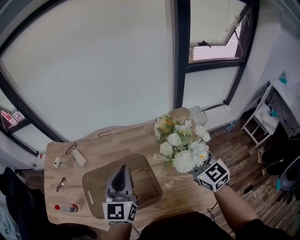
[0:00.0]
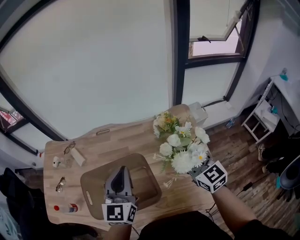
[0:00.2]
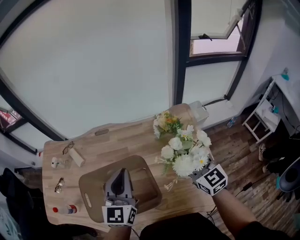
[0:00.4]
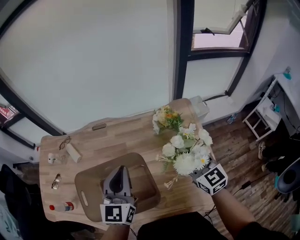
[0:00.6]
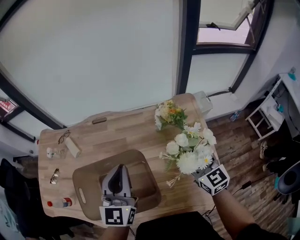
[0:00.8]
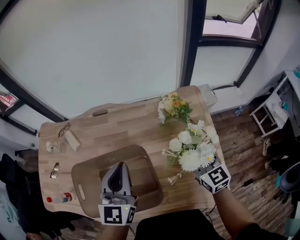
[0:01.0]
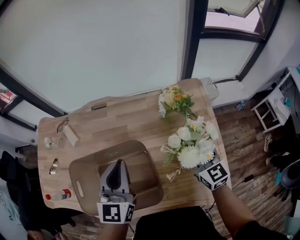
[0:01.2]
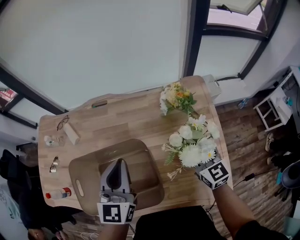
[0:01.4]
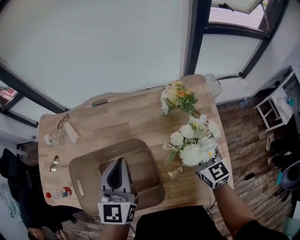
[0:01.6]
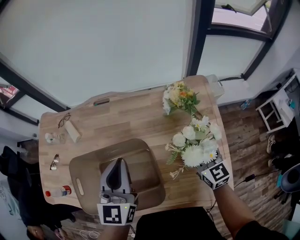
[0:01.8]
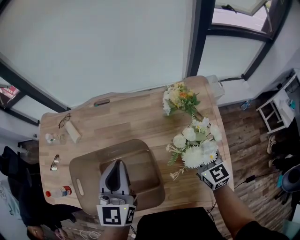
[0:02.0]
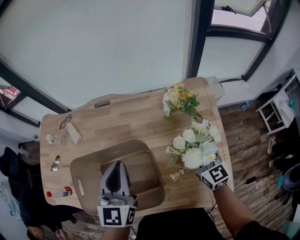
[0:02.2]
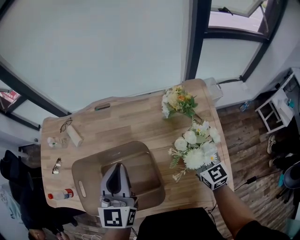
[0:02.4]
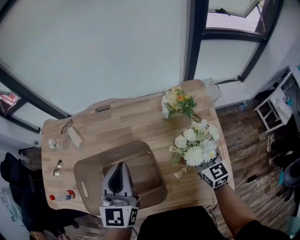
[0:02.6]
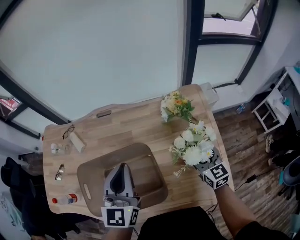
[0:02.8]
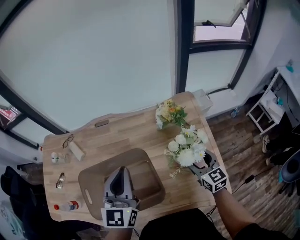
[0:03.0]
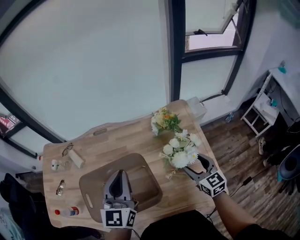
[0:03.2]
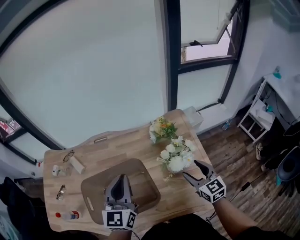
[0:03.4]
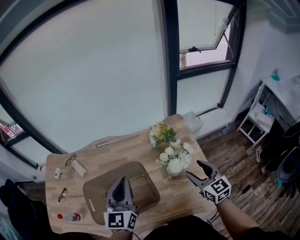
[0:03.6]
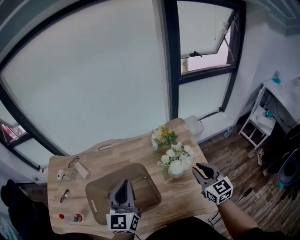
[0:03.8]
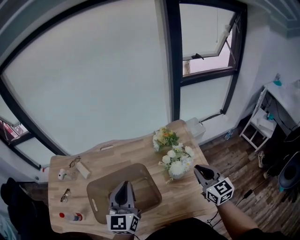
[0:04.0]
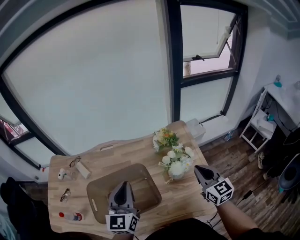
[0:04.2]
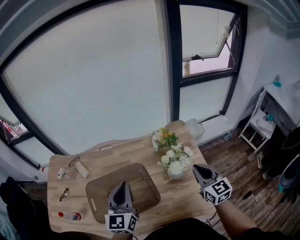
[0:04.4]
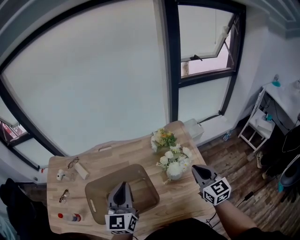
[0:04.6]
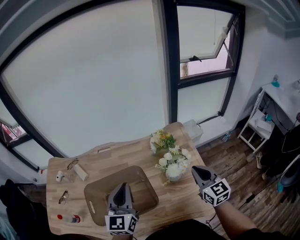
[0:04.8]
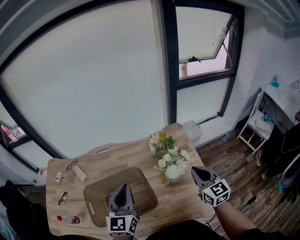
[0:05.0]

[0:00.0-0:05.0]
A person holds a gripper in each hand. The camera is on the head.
0.0 to 1.6 s: The left gripper goes roughly 10 cm downward; the right gripper shifts roughly 15 cm downward.
1.6 to 3.4 s: The left gripper shifts approximately 5 cm upward. The right gripper travels backward and upward by roughly 10 cm.
3.4 to 5.0 s: The right gripper shifts approximately 10 cm upward, and closes its fingers.

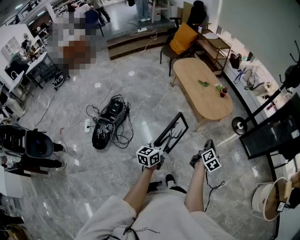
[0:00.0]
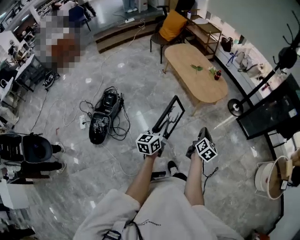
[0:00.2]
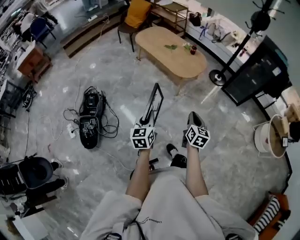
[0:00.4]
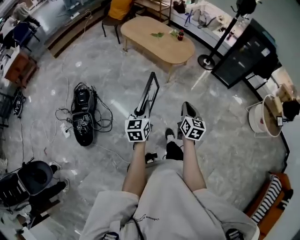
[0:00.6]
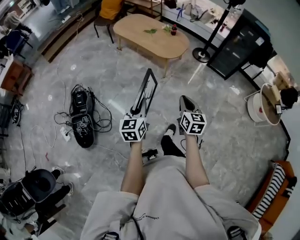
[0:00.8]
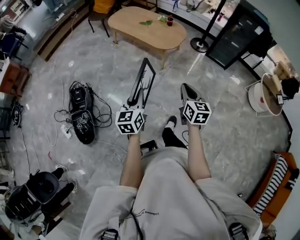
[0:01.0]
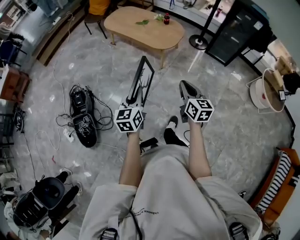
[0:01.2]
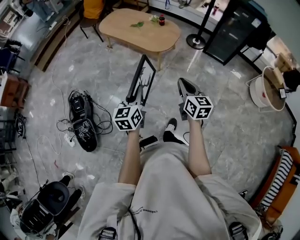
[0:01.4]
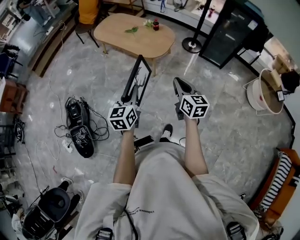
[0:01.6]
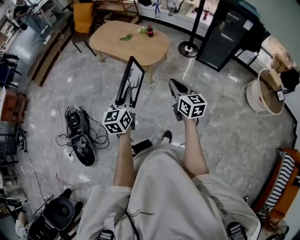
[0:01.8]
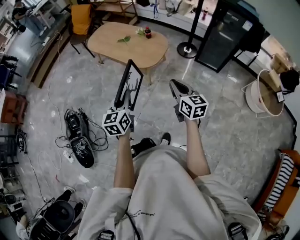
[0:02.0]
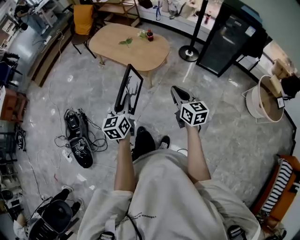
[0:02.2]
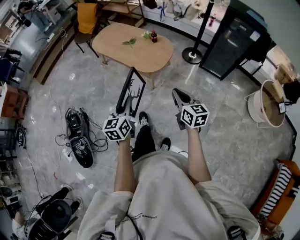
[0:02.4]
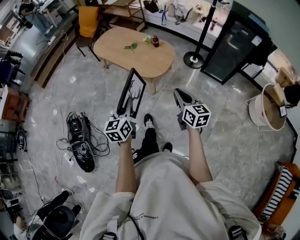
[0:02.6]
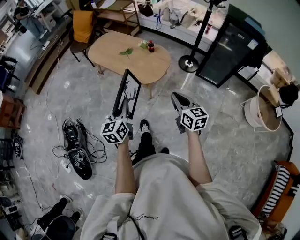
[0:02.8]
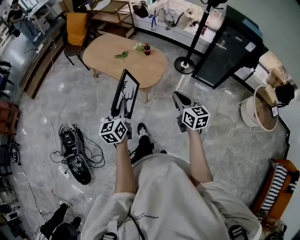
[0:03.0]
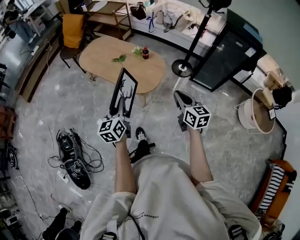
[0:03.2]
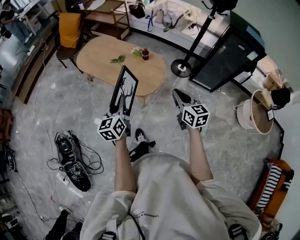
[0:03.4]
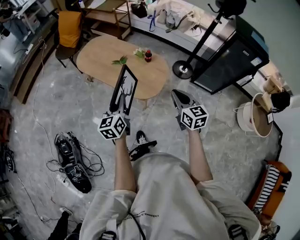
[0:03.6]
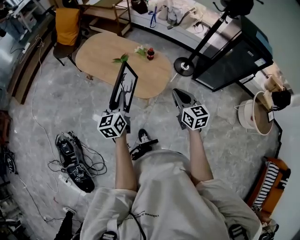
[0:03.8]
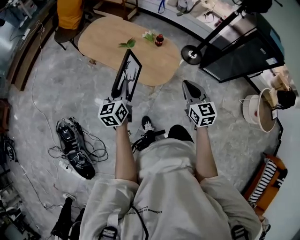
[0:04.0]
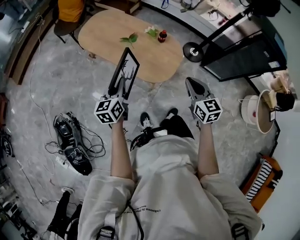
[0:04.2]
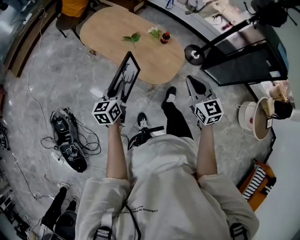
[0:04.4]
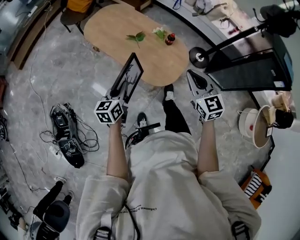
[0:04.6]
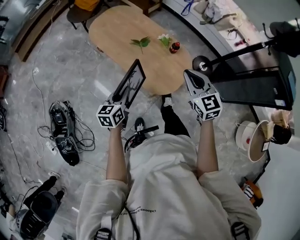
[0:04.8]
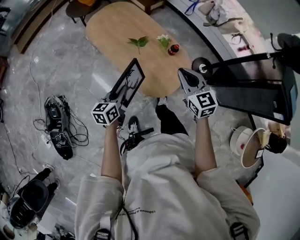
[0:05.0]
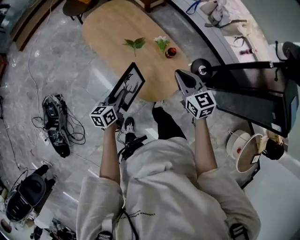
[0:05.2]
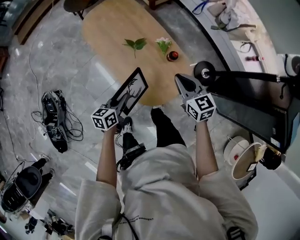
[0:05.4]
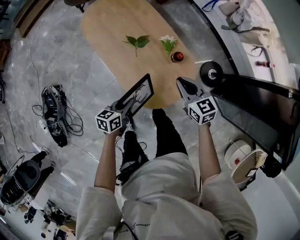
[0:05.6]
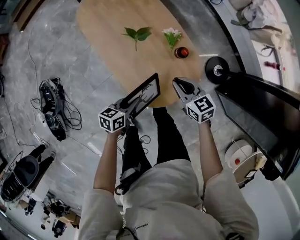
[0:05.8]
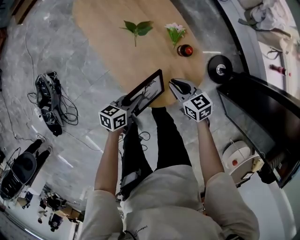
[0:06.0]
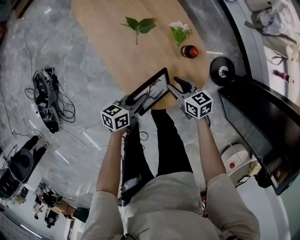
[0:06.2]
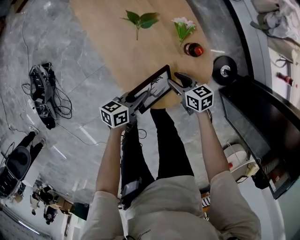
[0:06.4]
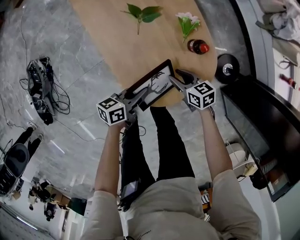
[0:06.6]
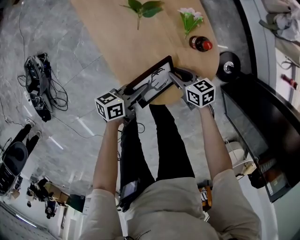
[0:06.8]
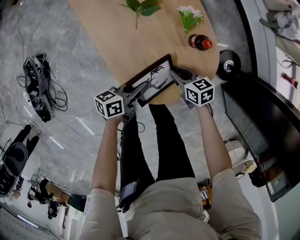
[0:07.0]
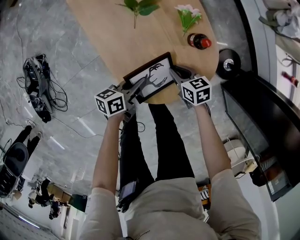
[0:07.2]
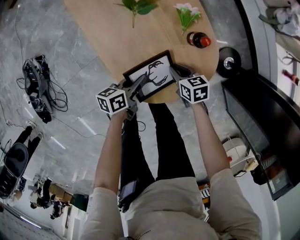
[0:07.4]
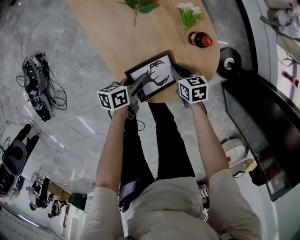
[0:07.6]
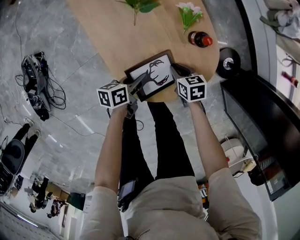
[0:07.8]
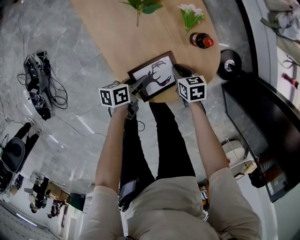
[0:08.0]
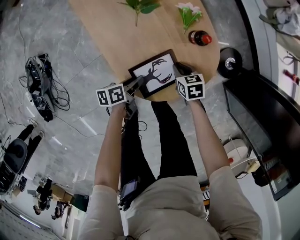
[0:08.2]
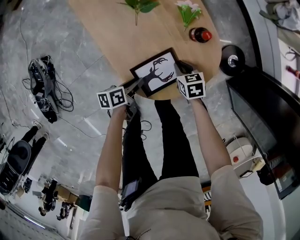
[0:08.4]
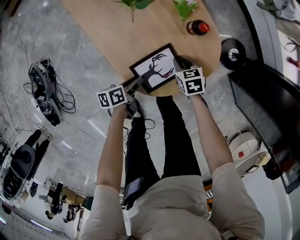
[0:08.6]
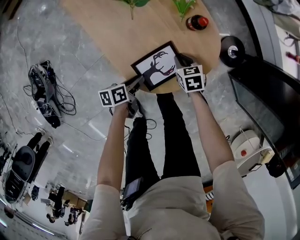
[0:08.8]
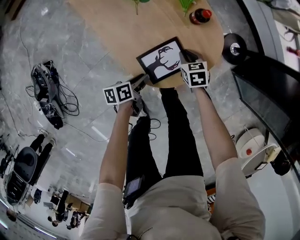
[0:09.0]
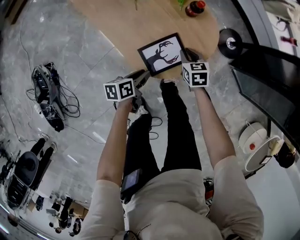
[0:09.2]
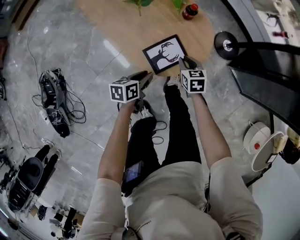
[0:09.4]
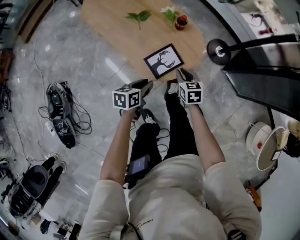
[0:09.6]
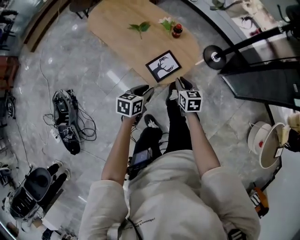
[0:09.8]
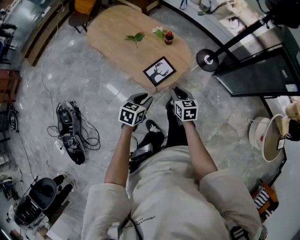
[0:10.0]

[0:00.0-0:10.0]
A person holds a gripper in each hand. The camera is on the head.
0.0 to 1.4 s: The left gripper reaches about 5 cm backward, then returns; the right gripper shifts some 10 cm to the left, upward and backward, and turns by approximately 20 degrees.
1.4 to 2.8 s: The right gripper shifts roughly 20 cm forward and to the right. Meanwhile the left gripper shifts about 20 cm forward.
2.8 to 4.2 s: The right gripper shifts roughly 30 cm forward. Meanwhile the left gripper is displaced forward and to the left by roughly 35 cm.
4.2 to 5.8 s: The left gripper heads downward, to the right and forward, covering approximately 35 cm, and changes its angle by approximately 30 degrees; the right gripper heads forward and downward, covering roughly 40 cm, and changes its angle by approximately 40 degrees.
5.8 to 7.2 s: The left gripper goes about 15 cm downward, and rotates roughly 20 degrees. Meanwhile the right gripper travels downward by some 25 cm, rotates roughly 20 degrees, and opens and closes again.
7.2 to 8.6 s: The left gripper goes roughly 5 cm backward.
8.6 to 10.0 s: The two grippers go some 40 cm upward and backward. The right gripper changes its angle by roughly 40 degrees. The left gripper twists roughly 60 degrees clockwise, seen from behind.

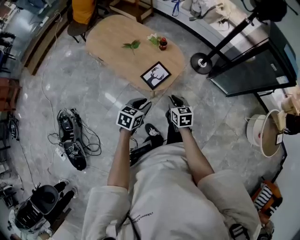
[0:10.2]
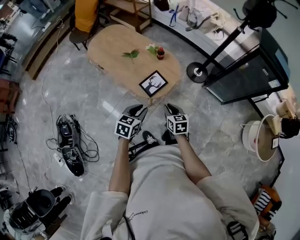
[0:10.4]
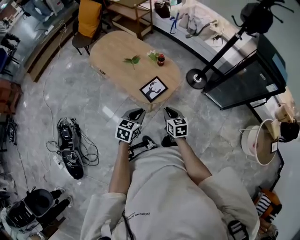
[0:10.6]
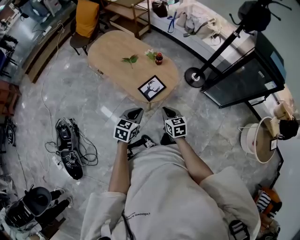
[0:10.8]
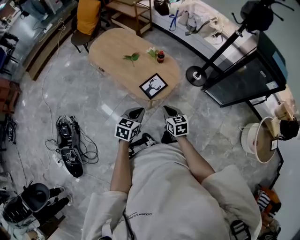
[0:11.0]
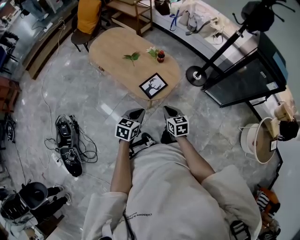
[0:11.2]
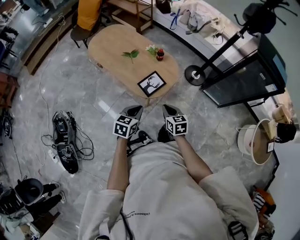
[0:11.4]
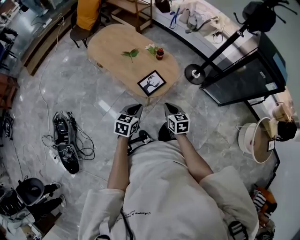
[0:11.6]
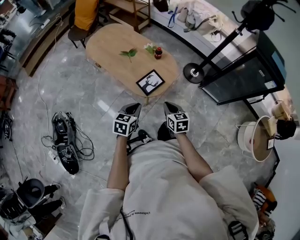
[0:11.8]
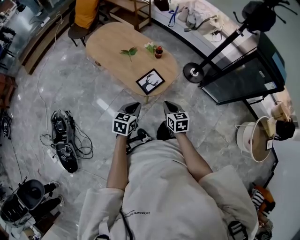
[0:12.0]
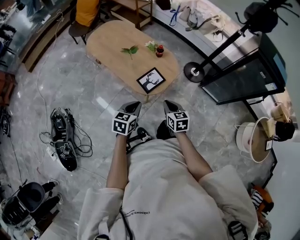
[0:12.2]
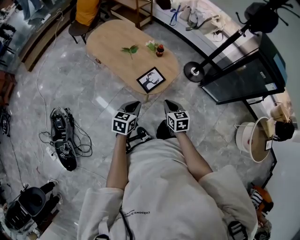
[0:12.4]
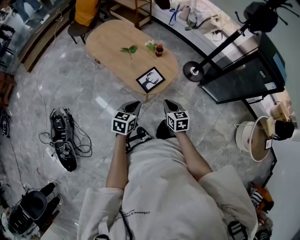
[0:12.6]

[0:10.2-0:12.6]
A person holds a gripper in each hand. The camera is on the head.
10.2 to 11.4 s: The right gripper shifts roughly 5 cm backward. Meanwhile the left gripper ends up some 5 cm from where it was, and closes its fingers.
11.4 to 12.6 s: The grippers stay close to where they were, moving slightly.

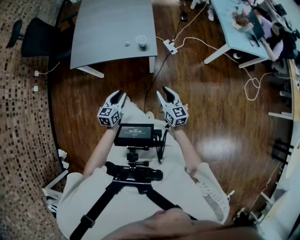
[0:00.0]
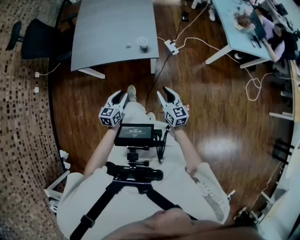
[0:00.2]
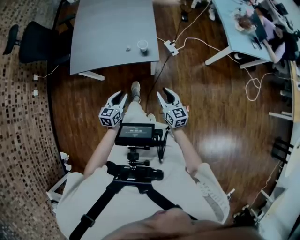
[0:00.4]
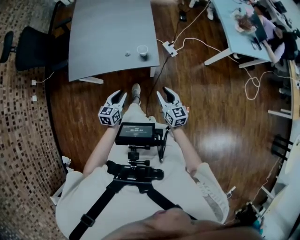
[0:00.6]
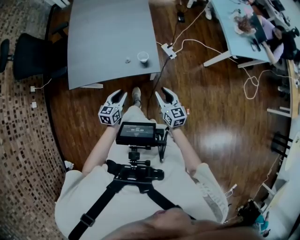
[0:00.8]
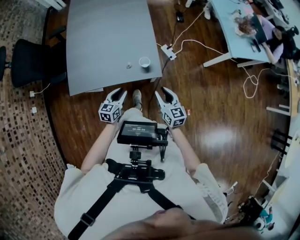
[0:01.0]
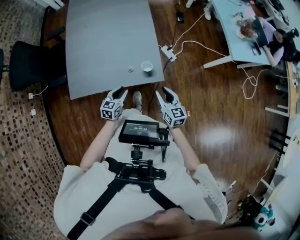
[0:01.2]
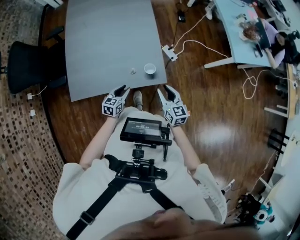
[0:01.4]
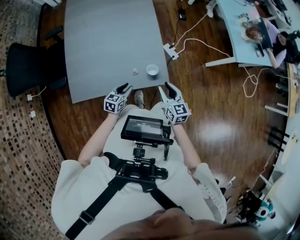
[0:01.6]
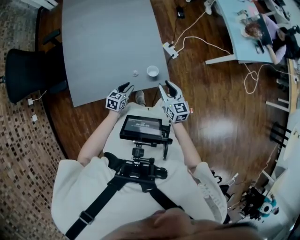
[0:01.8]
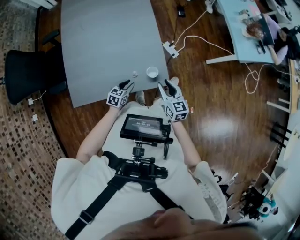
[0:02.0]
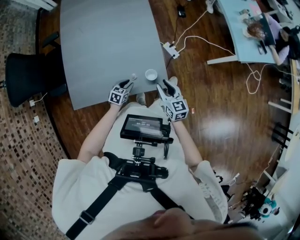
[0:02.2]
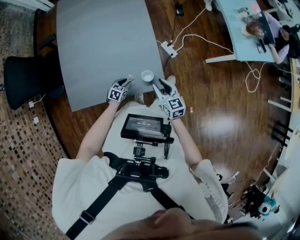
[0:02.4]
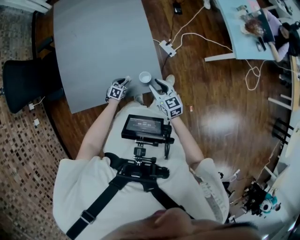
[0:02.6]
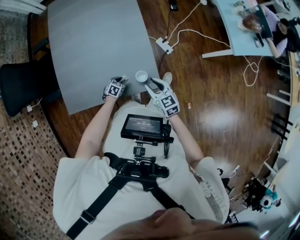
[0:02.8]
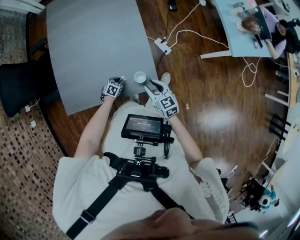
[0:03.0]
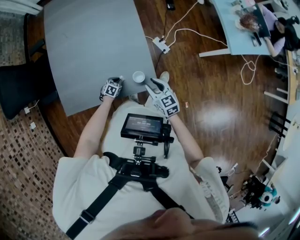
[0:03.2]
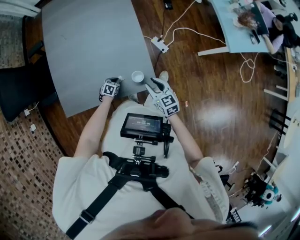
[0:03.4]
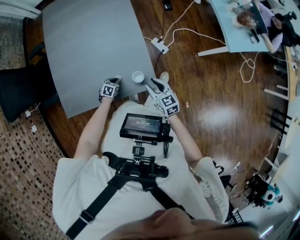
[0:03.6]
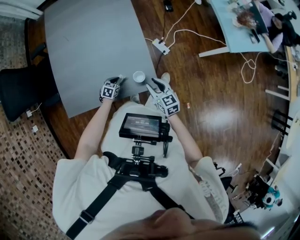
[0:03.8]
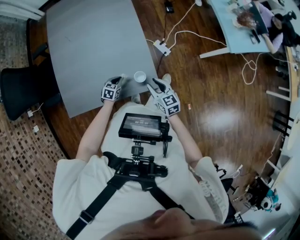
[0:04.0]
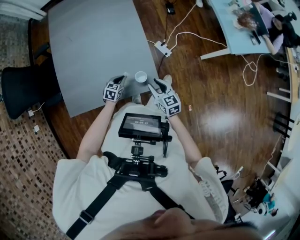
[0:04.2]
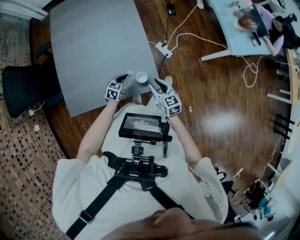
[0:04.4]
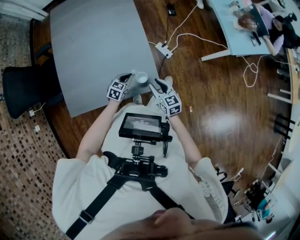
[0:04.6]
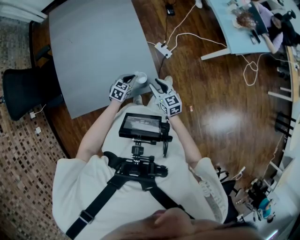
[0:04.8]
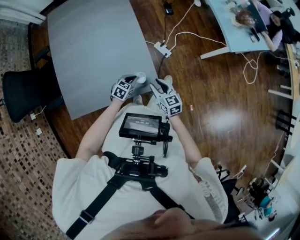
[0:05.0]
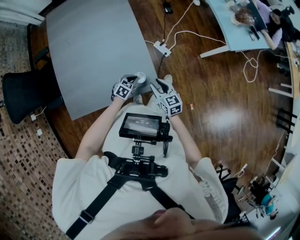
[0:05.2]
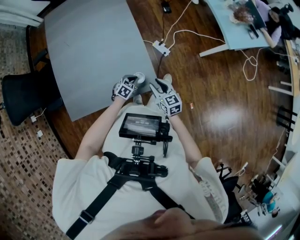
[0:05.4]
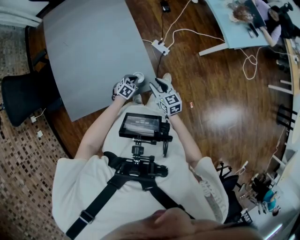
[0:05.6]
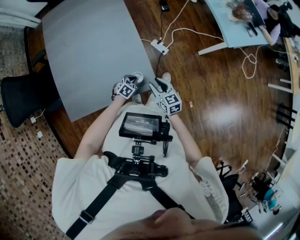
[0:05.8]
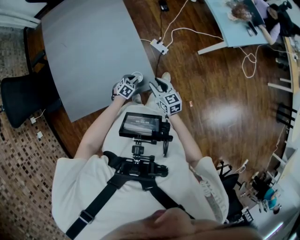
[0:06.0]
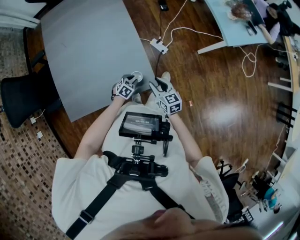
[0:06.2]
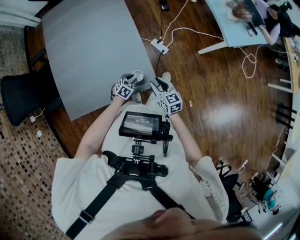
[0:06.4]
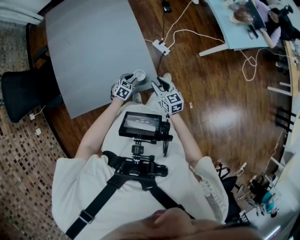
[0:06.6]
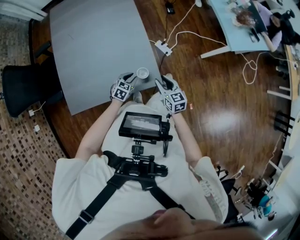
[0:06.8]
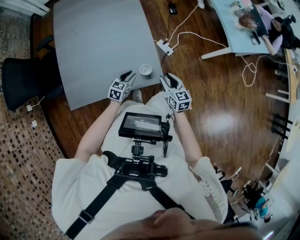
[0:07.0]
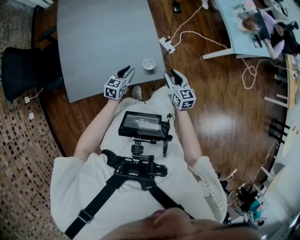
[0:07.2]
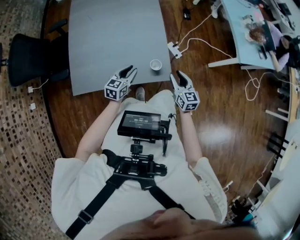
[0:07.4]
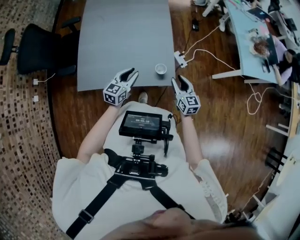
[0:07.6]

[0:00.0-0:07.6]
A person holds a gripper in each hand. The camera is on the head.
0.0 to 1.6 s: Both grippers travel together forward, some 30 cm. The left gripper changes its angle by roughly 20 degrees.
1.6 to 3.0 s: The left gripper is displaced downward and forward by some 20 cm, and swivels some 30 degrees. The right gripper heads forward, covering roughly 5 cm.
3.0 to 4.6 s: The left gripper goes some 20 cm upward and to the right, and changes its angle by some 20 degrees.
4.6 to 6.0 s: The left gripper is displaced downward and to the right by about 10 cm, swivels some 20 degrees, and opens up.
6.0 to 7.6 s: The left gripper moves upward and to the left, some 25 cm, and tilts its fingers about 40 degrees upward; the right gripper heads upward, covering roughly 5 cm.
